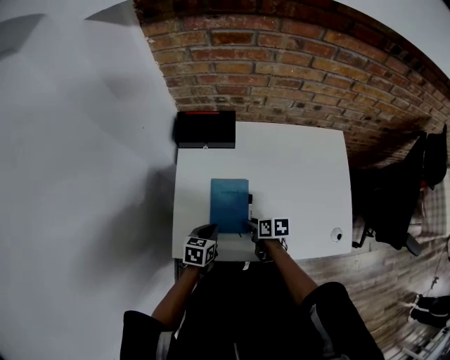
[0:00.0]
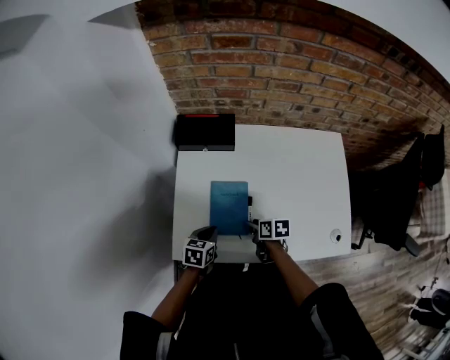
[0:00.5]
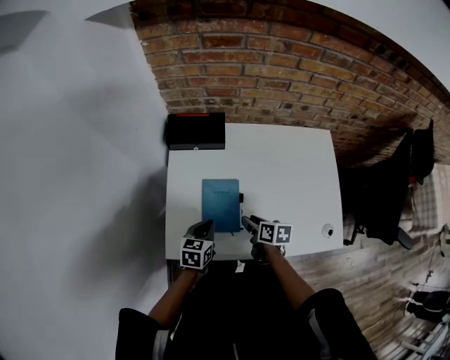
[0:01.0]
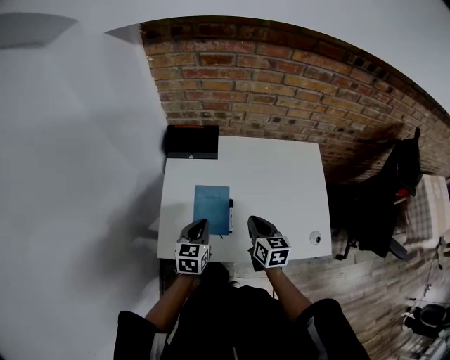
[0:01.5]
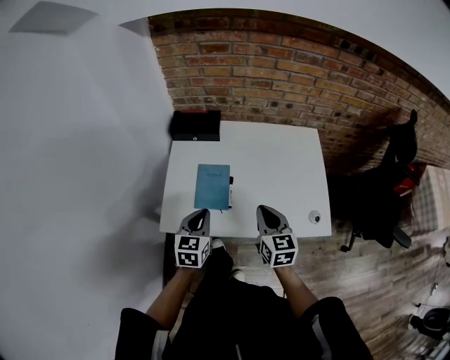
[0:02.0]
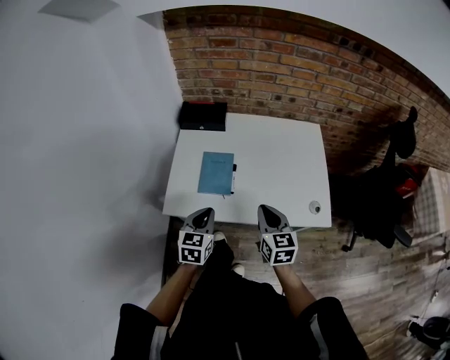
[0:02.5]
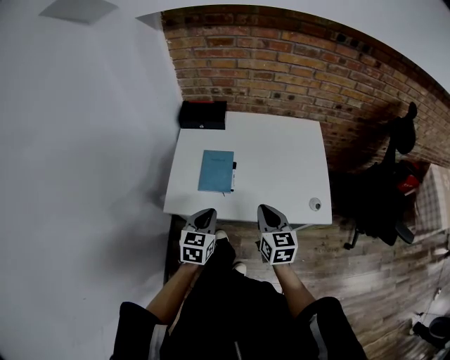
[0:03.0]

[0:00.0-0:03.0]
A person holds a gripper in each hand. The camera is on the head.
0.0 to 1.5 s: The right gripper travels upward and to the right by about 20 cm, turns by approximately 40 degrees, and closes up, while the left gripper goes some 10 cm upward, and rotates roughly 20 degrees.
1.5 to 3.0 s: Both grippers move backward, roughly 15 cm.

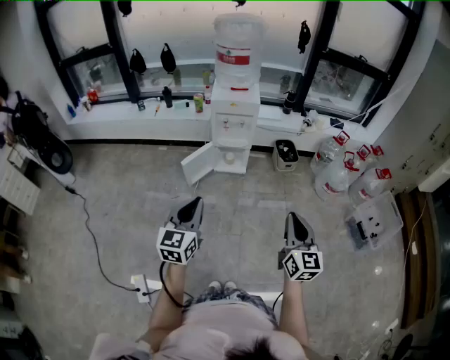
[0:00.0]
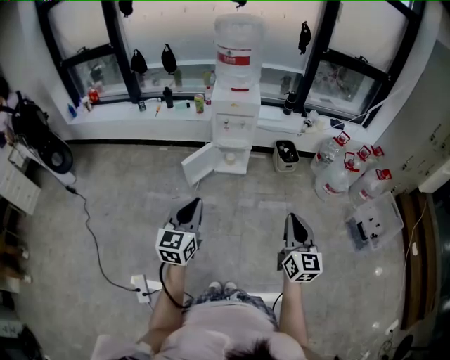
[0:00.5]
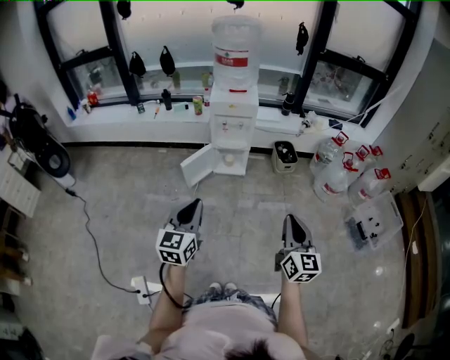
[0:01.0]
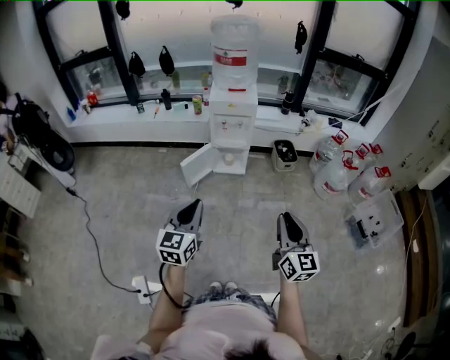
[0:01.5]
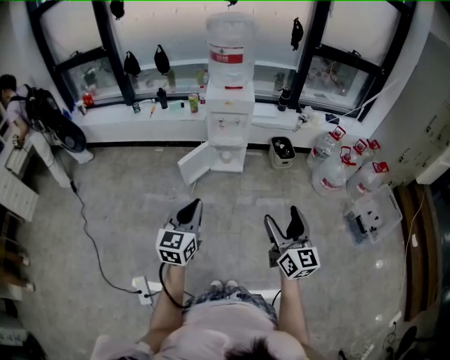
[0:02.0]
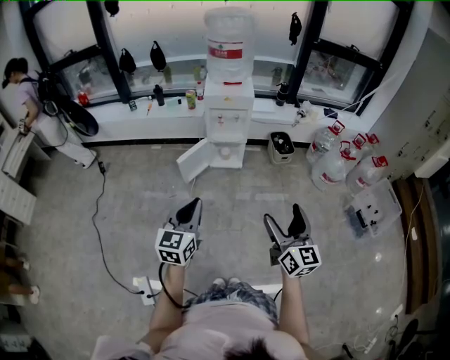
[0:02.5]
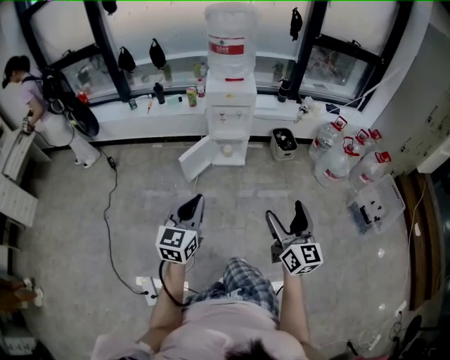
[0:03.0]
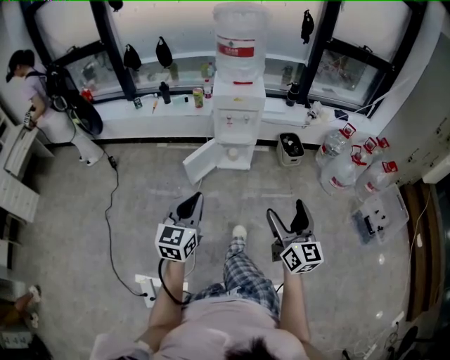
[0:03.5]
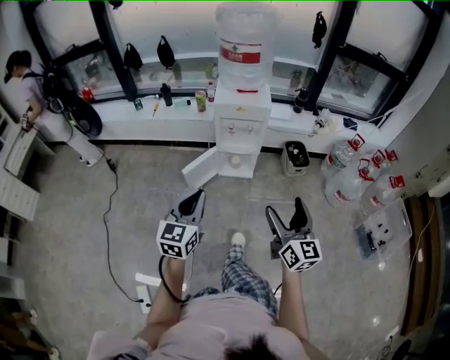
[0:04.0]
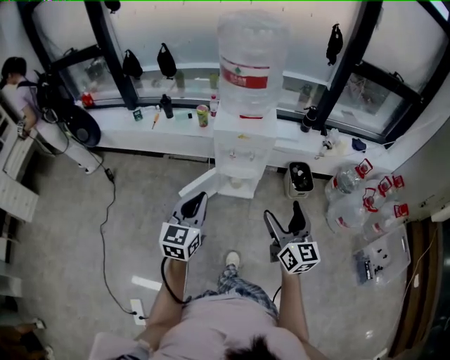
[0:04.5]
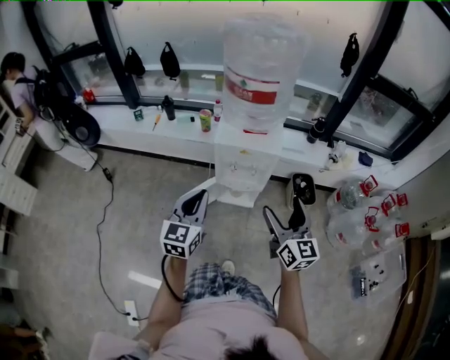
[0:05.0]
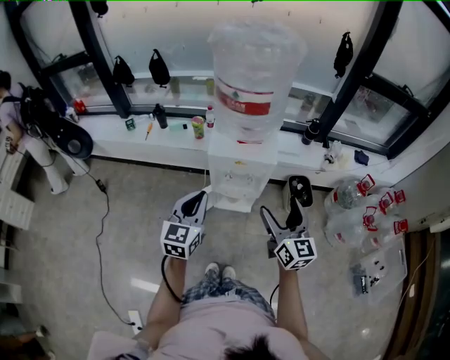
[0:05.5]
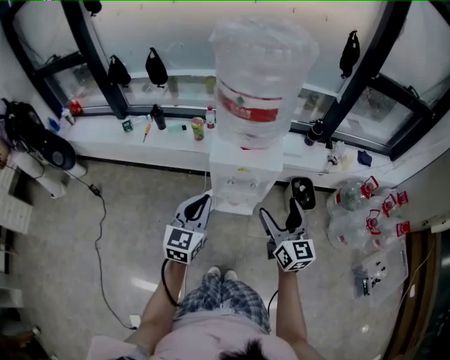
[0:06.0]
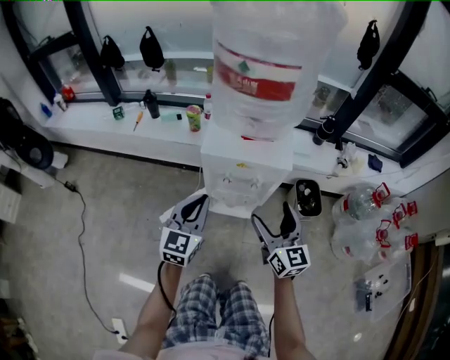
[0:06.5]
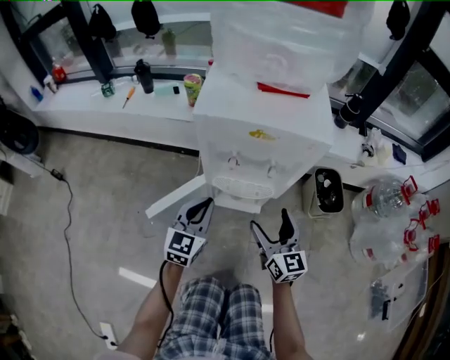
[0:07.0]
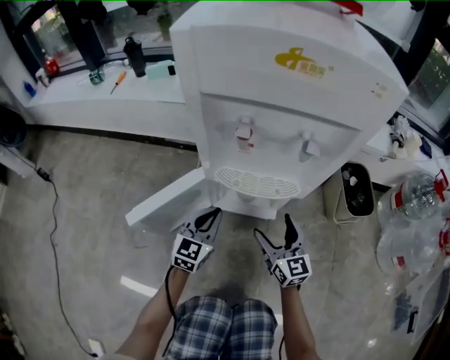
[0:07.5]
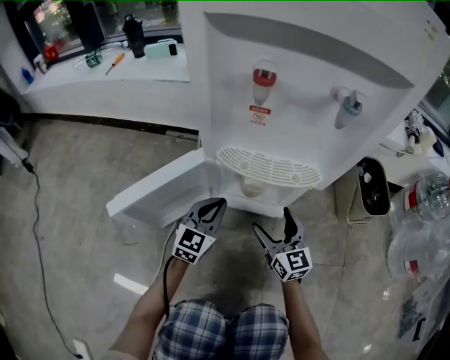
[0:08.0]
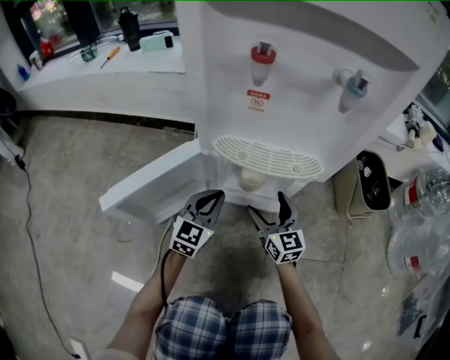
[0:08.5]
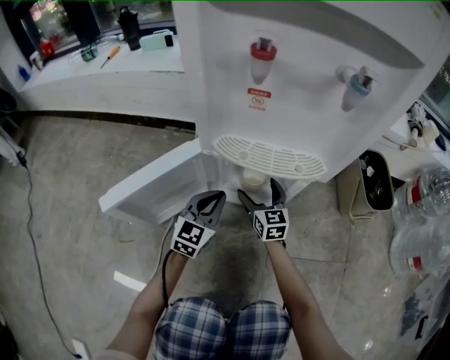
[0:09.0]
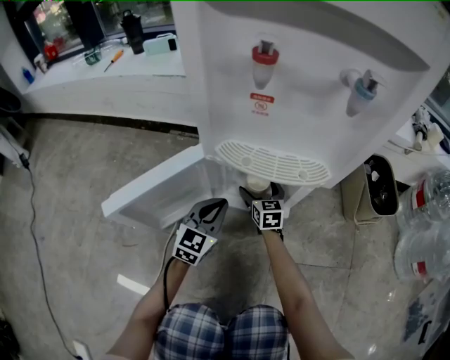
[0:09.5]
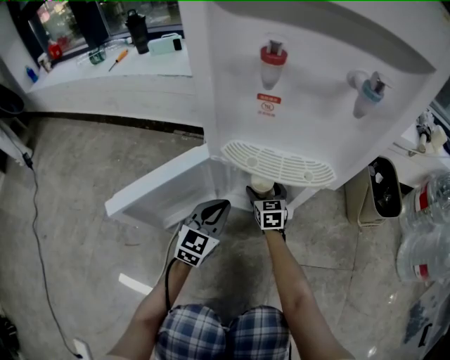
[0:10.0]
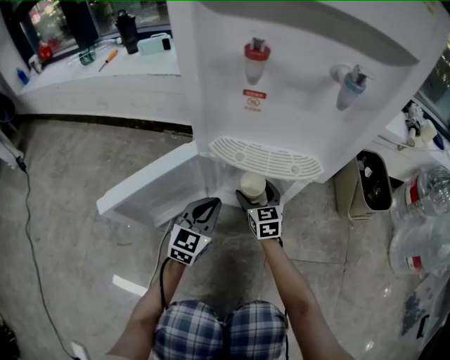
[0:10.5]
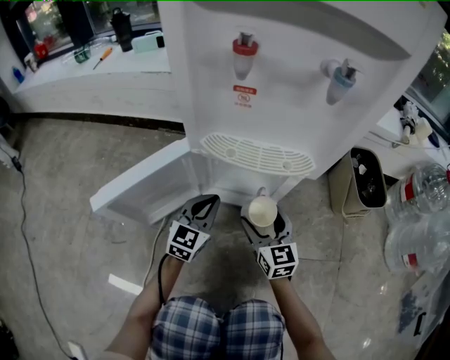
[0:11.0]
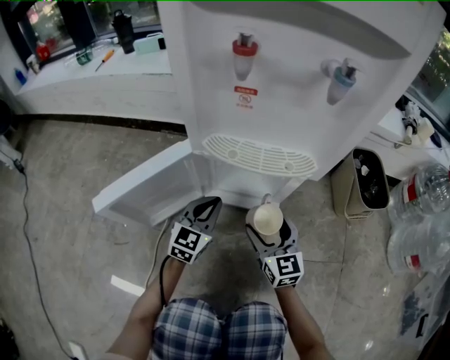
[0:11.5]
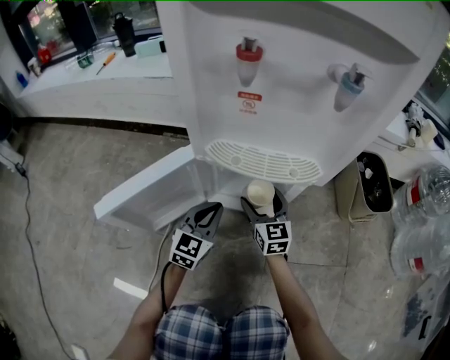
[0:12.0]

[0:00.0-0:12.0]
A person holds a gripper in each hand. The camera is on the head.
0.0 to 2.0 s: The right gripper opens up.
2.0 to 4.0 s: The grippers both shift forward by approximately 20 cm.
4.0 to 6.0 s: The grippers both shift forward by approximately 40 cm.
6.0 to 8.0 s: The grippers both shift downward by roughly 80 cm.
8.0 to 10.0 s: The right gripper moves forward and downward, roughly 20 cm, and changes its angle by about 20 degrees.
10.0 to 12.0 s: The right gripper shifts about 10 cm upward and backward.

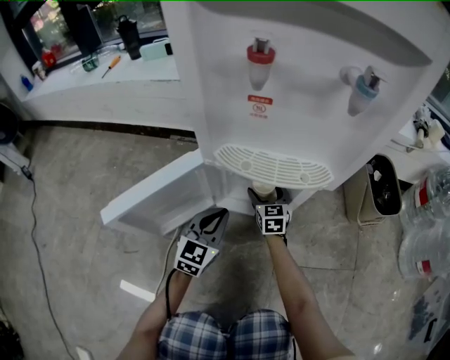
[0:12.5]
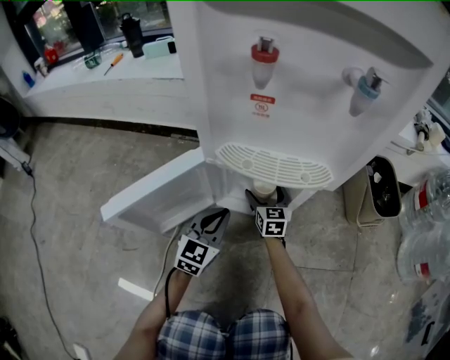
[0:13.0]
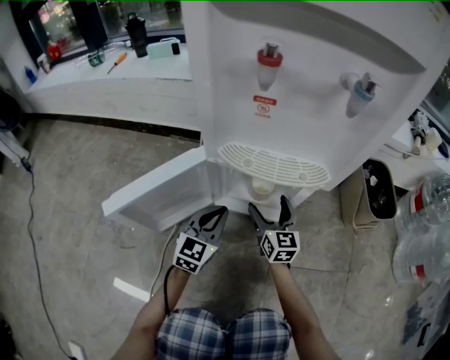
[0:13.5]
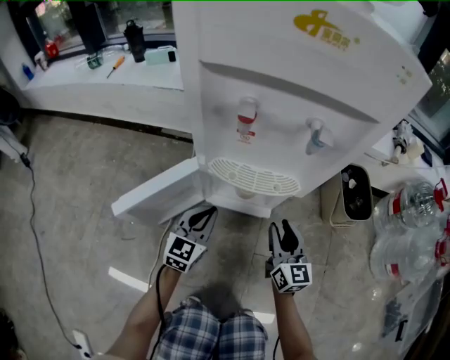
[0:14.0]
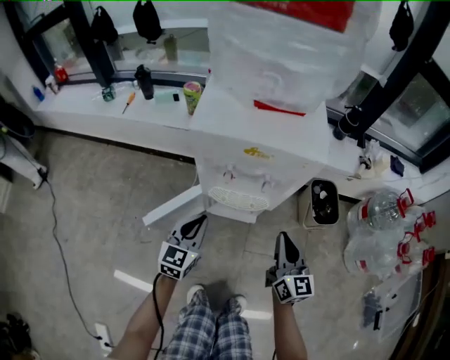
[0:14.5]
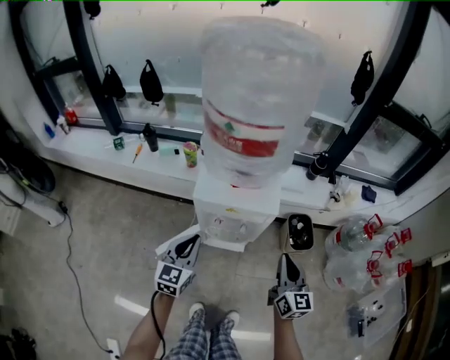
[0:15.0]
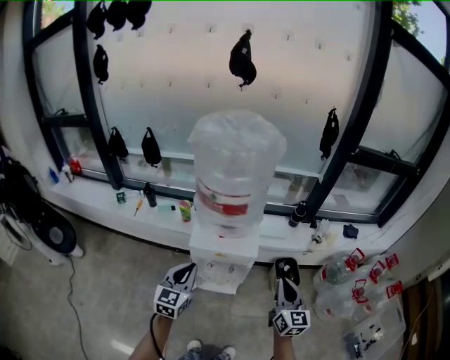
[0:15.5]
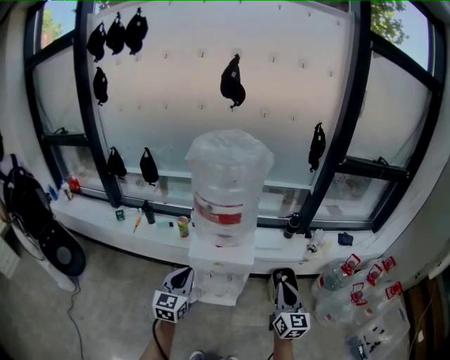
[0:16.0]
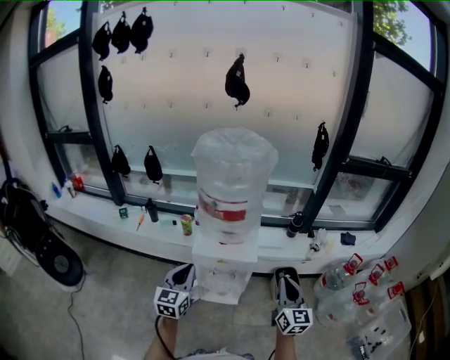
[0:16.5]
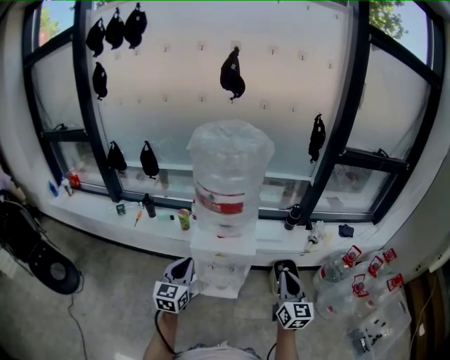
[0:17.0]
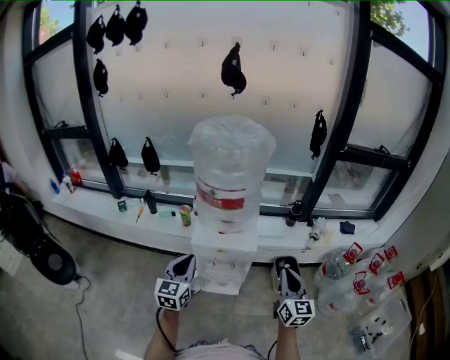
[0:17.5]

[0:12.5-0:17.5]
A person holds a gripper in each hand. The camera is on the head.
12.5 to 15.0 s: Both grippers travel together upward, roughly 70 cm. The right gripper rotates about 30 degrees, and closes up.
15.0 to 17.5 s: Both grippers move upward, roughly 15 cm.

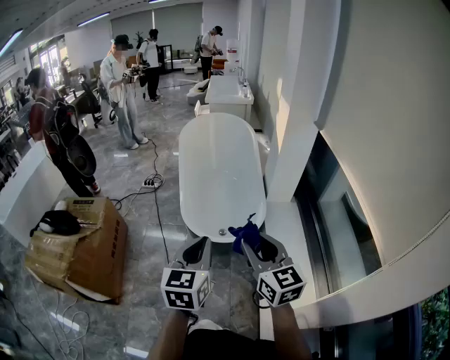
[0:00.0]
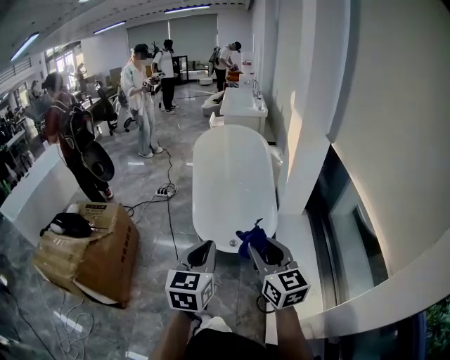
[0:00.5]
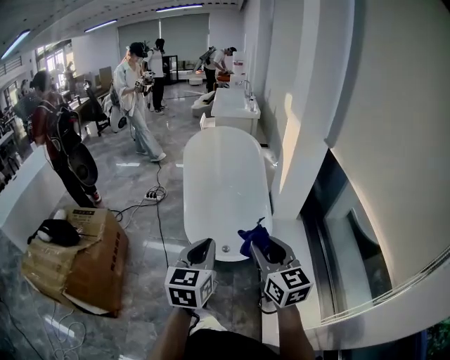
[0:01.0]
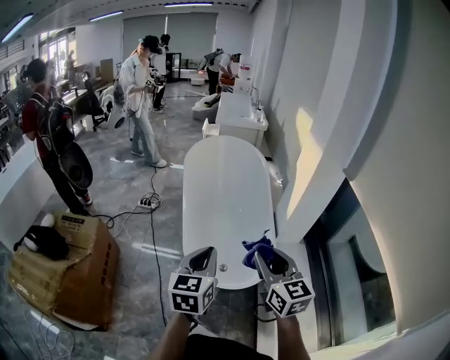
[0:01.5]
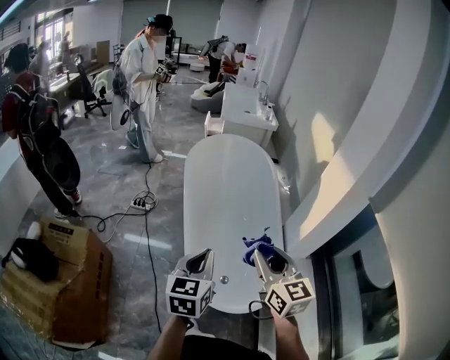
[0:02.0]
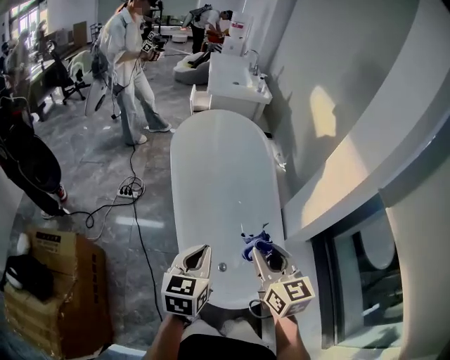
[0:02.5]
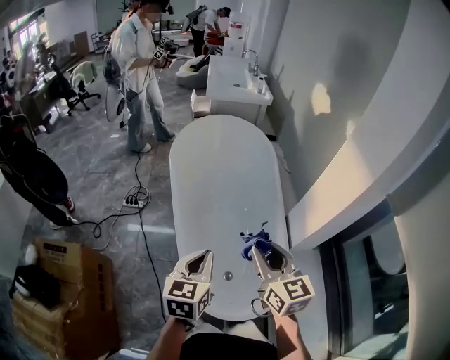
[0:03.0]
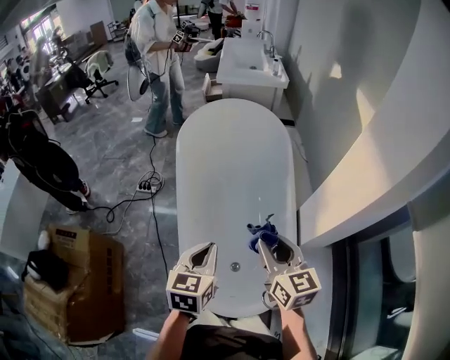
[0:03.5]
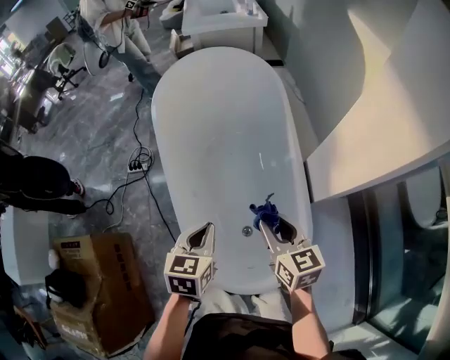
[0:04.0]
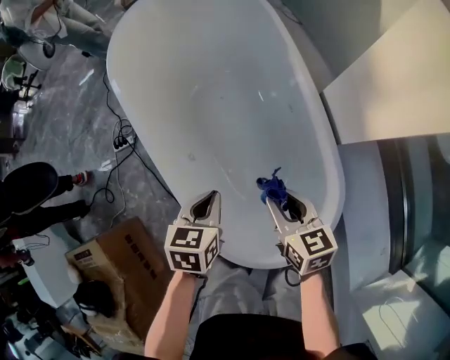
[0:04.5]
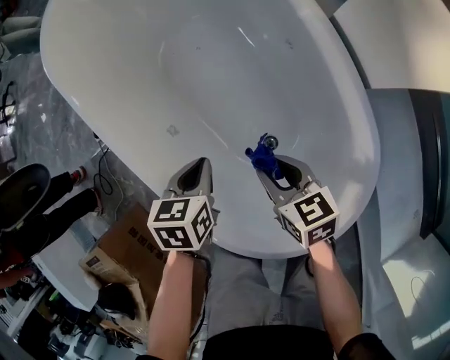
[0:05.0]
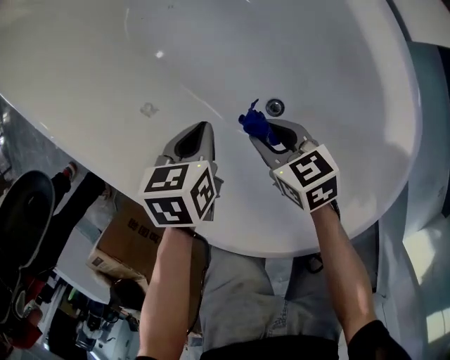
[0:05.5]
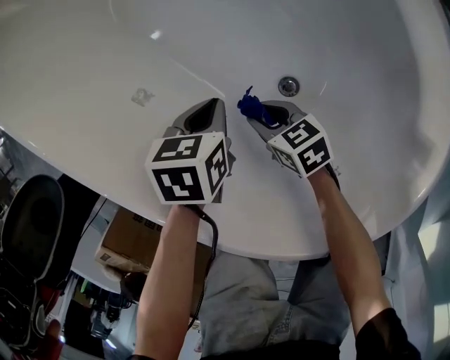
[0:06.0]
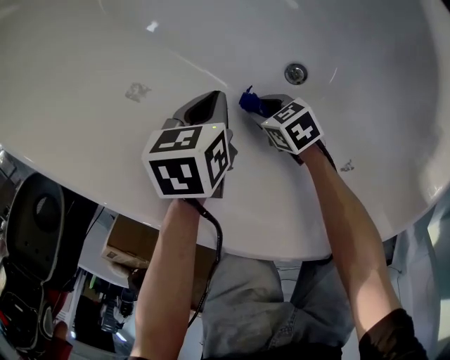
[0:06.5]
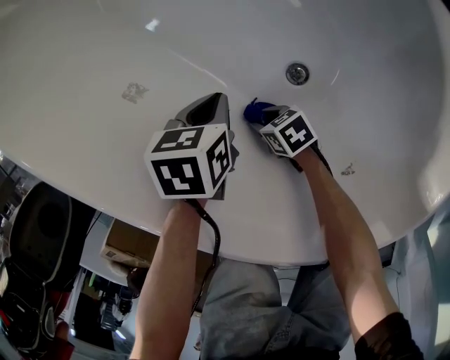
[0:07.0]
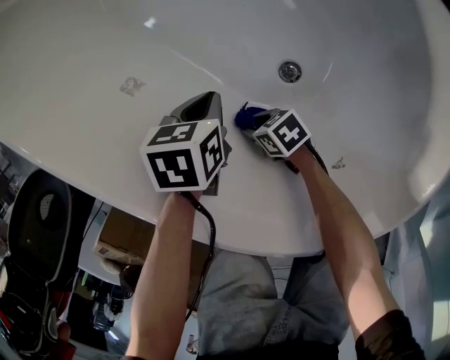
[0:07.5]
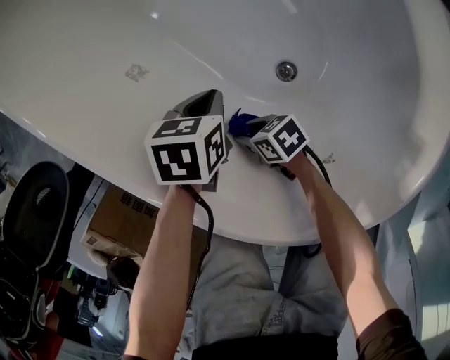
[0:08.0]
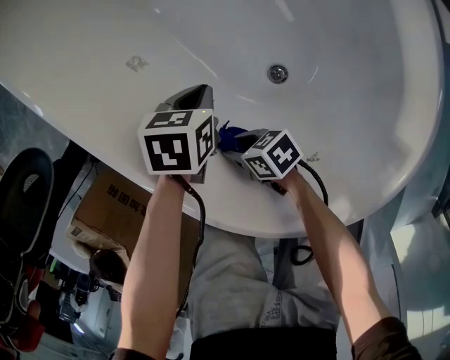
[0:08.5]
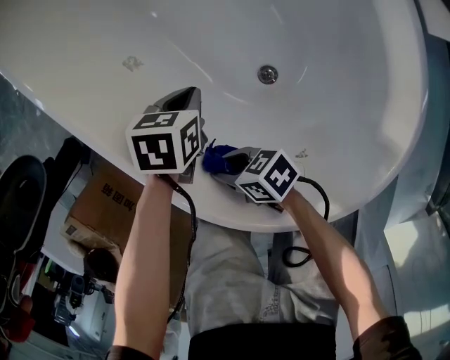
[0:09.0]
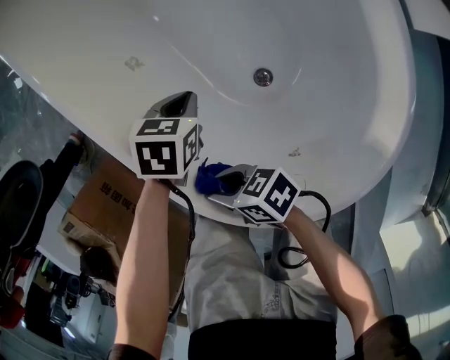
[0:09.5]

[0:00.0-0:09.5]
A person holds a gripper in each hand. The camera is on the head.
0.0 to 2.0 s: The left gripper shifts by about 40 cm.
2.0 to 4.0 s: The left gripper ends up approximately 30 cm from where it was, and rotates some 30 degrees.
4.0 to 5.5 s: The left gripper shifts approximately 40 cm downward, and turns by roughly 30 degrees.
5.5 to 7.5 s: The left gripper goes some 10 cm downward.
7.5 to 9.5 s: The left gripper heads upward, covering roughly 10 cm.
